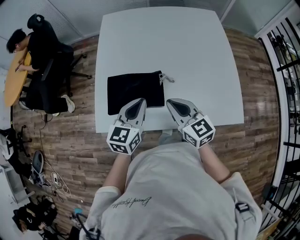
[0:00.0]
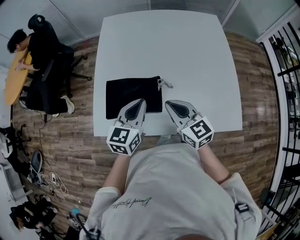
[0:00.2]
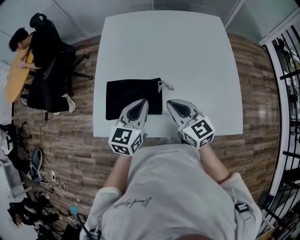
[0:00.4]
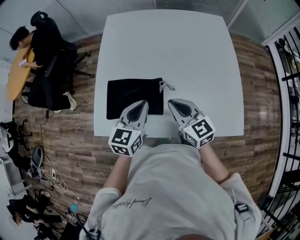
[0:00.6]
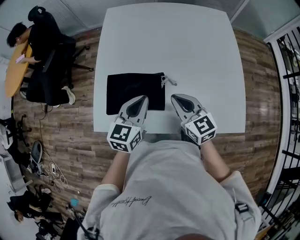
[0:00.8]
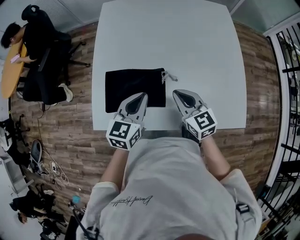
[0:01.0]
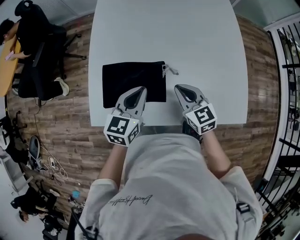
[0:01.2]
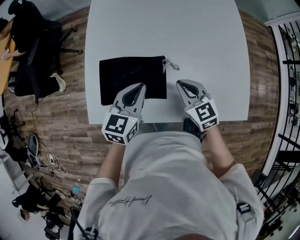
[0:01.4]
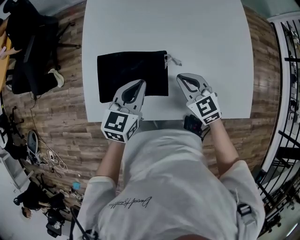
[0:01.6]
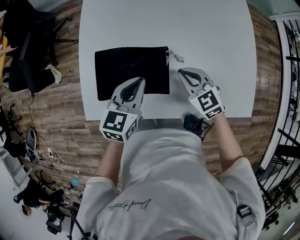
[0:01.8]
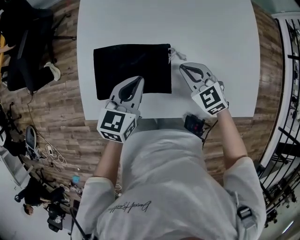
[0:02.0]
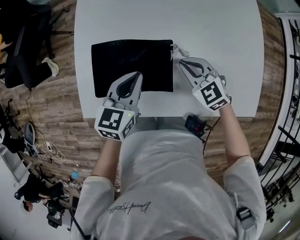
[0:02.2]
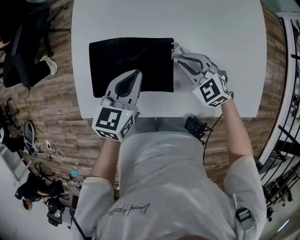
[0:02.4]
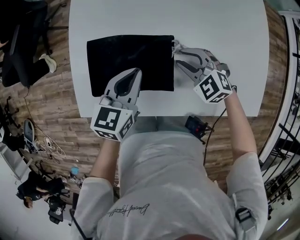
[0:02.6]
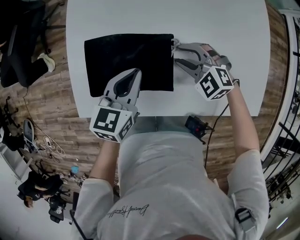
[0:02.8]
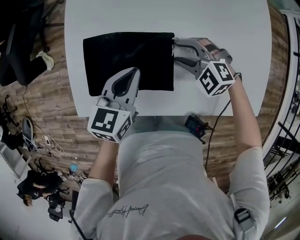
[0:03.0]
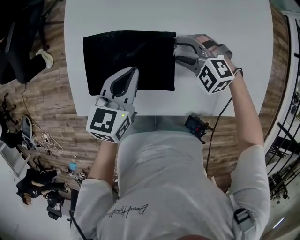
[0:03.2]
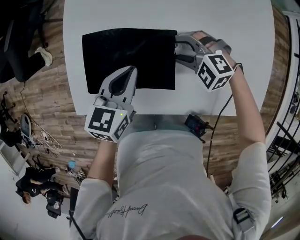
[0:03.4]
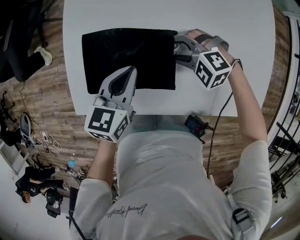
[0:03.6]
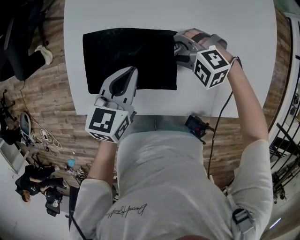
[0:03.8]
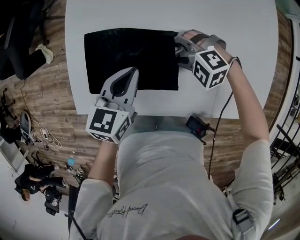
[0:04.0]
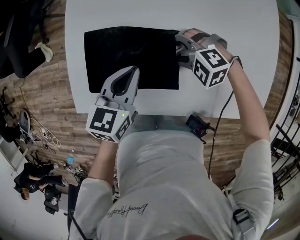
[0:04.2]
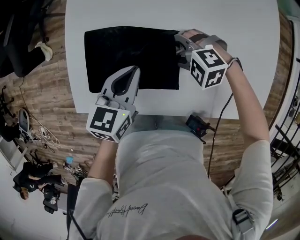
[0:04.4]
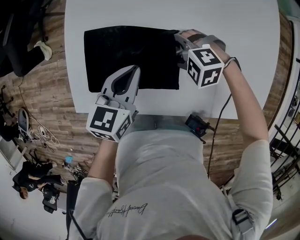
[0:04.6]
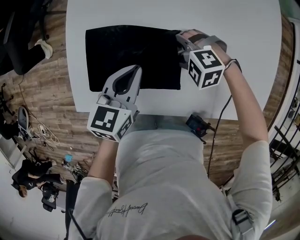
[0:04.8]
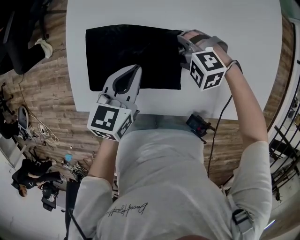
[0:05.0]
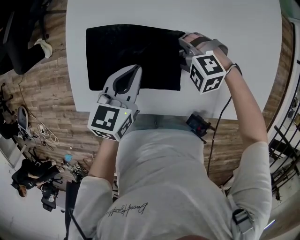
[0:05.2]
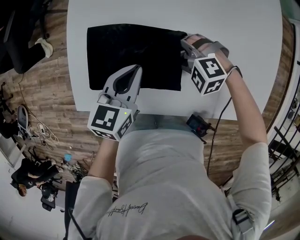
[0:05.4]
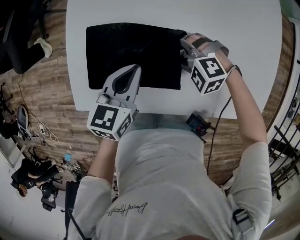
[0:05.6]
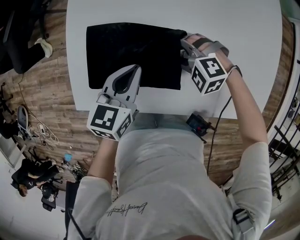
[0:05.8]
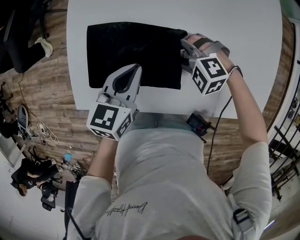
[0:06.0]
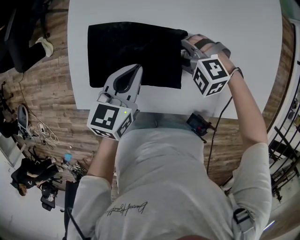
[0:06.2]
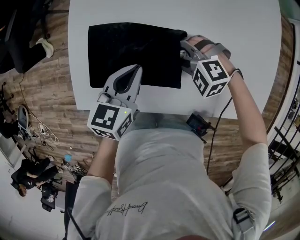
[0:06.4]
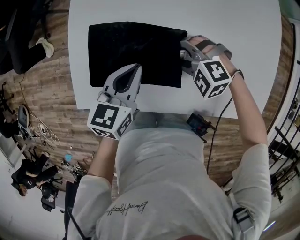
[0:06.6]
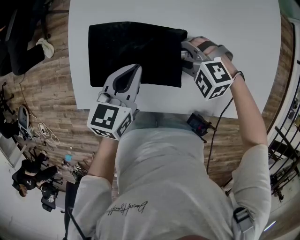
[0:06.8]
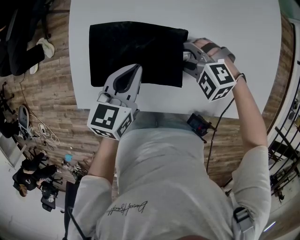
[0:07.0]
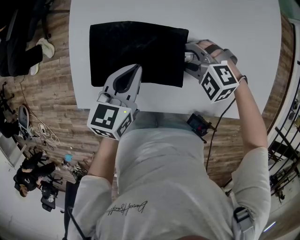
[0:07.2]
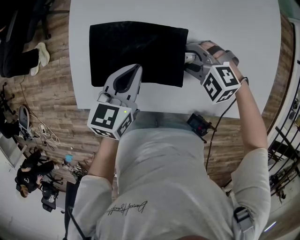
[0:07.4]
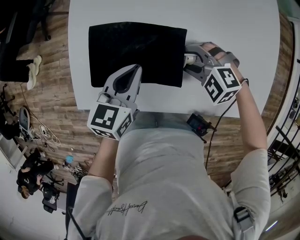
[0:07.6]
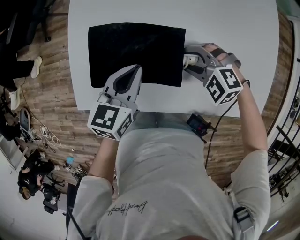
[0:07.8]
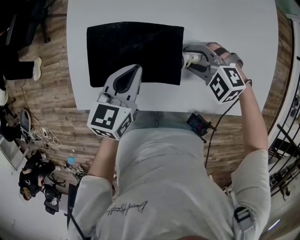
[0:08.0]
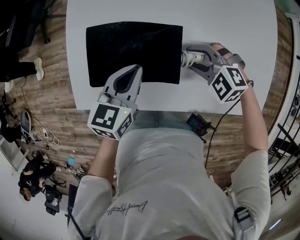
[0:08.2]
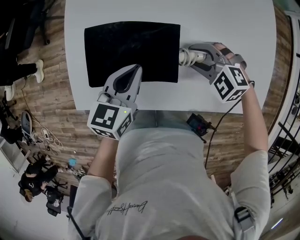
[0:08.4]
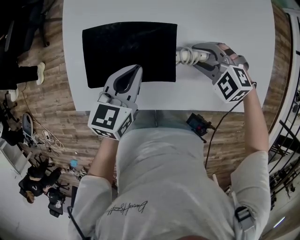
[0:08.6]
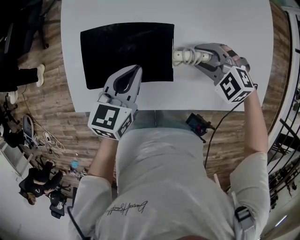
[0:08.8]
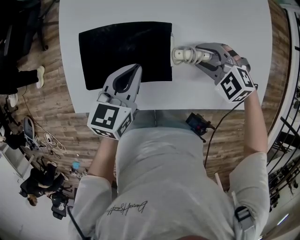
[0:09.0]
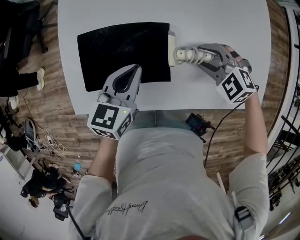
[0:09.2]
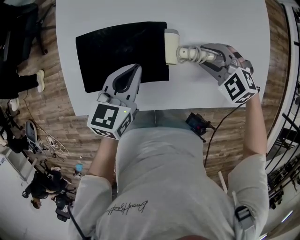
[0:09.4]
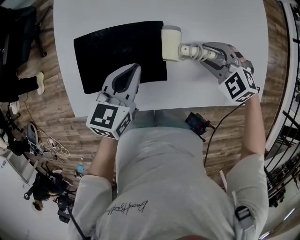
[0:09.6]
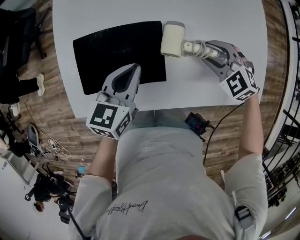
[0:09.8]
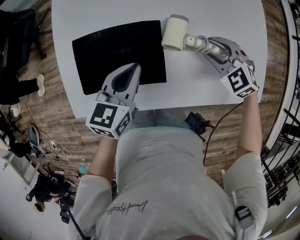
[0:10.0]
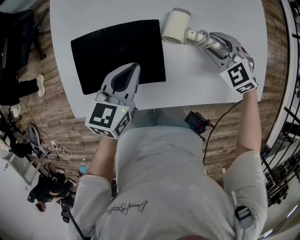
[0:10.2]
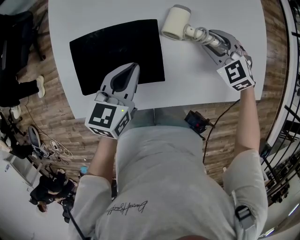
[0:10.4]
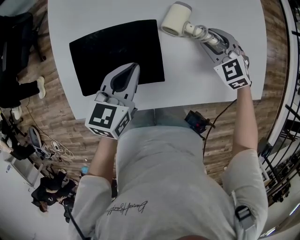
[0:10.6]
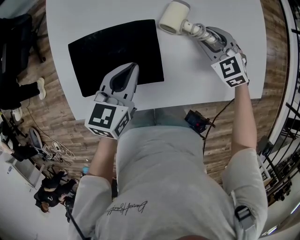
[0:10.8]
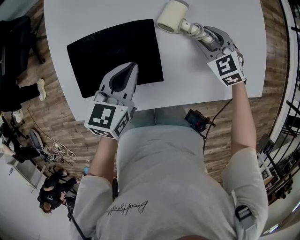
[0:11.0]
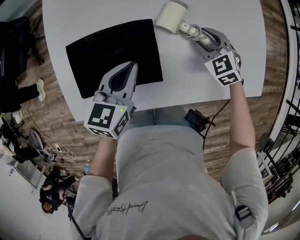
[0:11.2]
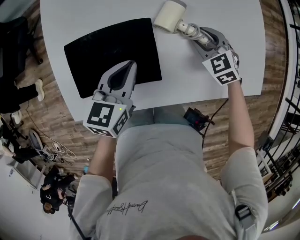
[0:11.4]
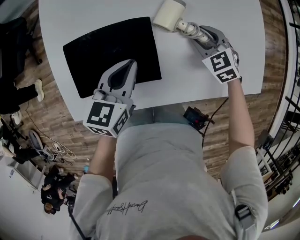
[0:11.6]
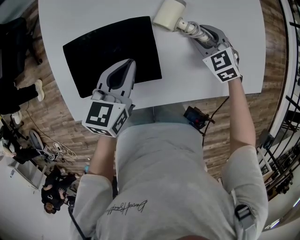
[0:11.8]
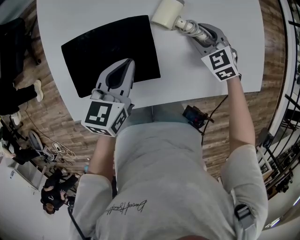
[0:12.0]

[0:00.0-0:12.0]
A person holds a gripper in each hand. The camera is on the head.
0:00.0 to 0:01.6: The right gripper is displaced downward and forward by some 10 cm, and changes its angle by some 20 degrees. Meanwhile the left gripper travels downward by about 5 cm.
0:01.6 to 0:03.0: The right gripper moves downward, roughly 10 cm, changes its angle by about 50 degrees, and opens, while the left gripper ends up about 5 cm from where it was.
0:03.0 to 0:04.4: The right gripper heads to the left, covering approximately 5 cm, and changes its angle by roughly 20 degrees.
0:04.4 to 0:07.6: The grippers stay close to where they were, moving slightly.
0:07.6 to 0:09.0: The right gripper goes roughly 10 cm to the right.
0:09.0 to 0:10.4: The right gripper moves to the right, roughly 10 cm, and swivels approximately 30 degrees.
0:10.4 to 0:12.0: The grippers move only a little.

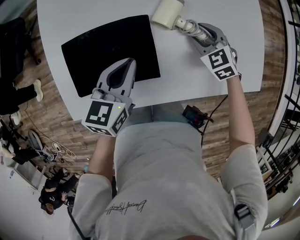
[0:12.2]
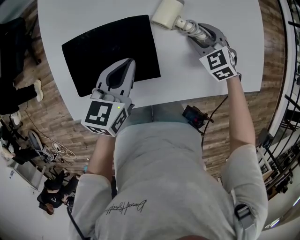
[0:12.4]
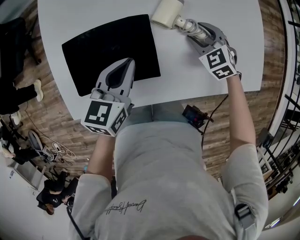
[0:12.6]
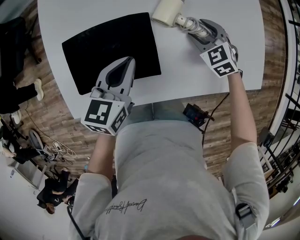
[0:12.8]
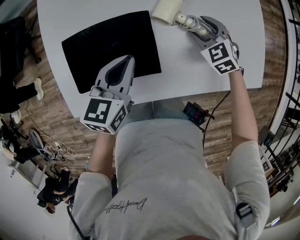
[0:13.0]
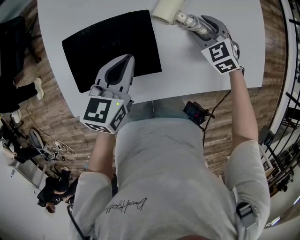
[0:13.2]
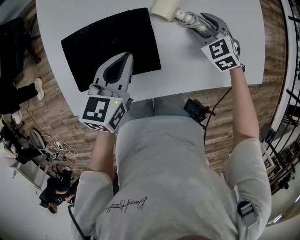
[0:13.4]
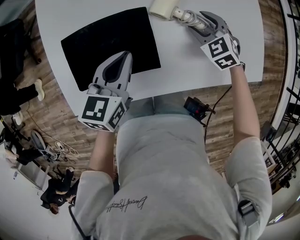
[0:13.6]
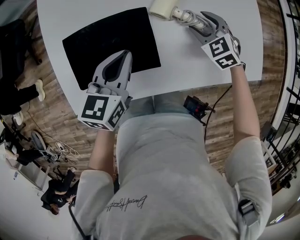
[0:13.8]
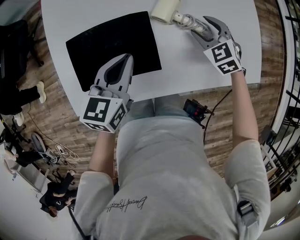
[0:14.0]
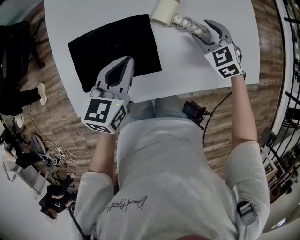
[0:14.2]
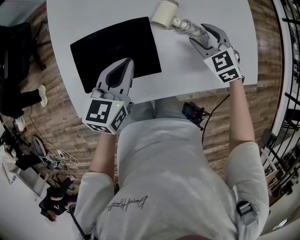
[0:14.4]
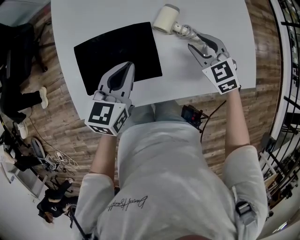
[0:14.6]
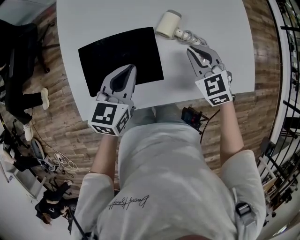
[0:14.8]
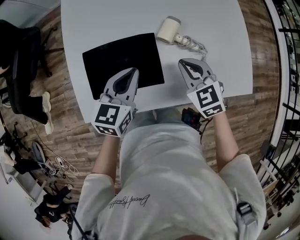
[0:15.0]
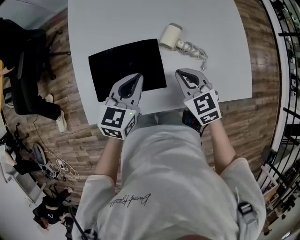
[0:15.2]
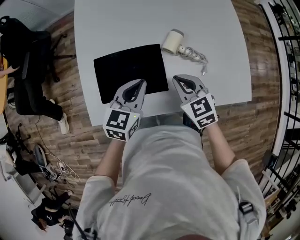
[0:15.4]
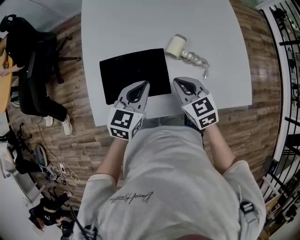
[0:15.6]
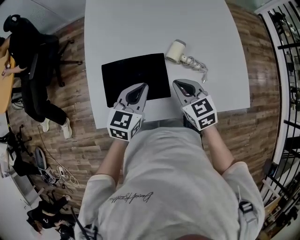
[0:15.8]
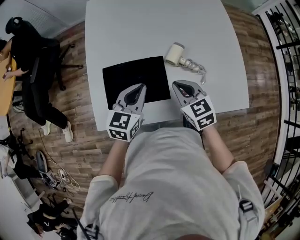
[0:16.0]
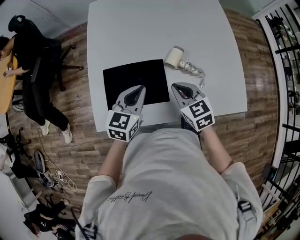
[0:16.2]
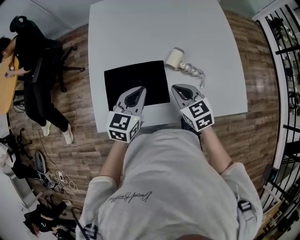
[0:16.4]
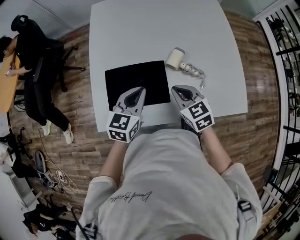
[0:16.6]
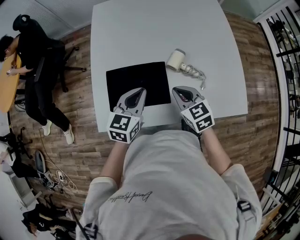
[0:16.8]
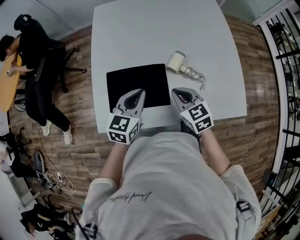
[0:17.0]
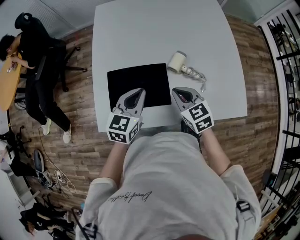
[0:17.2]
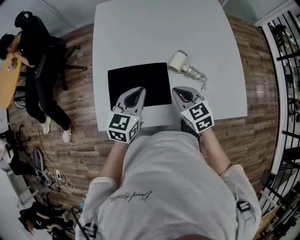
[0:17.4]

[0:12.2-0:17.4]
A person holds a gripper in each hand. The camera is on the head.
0:12.2 to 0:14.0: The grippers stay close to where they were, moving slightly.
0:14.0 to 0:15.6: The right gripper is displaced to the left, upward and backward by approximately 20 cm, turns by about 30 degrees, and closes its fingers.
0:15.6 to 0:17.4: The grippers make only small movements.

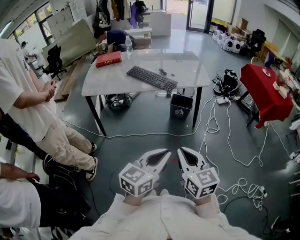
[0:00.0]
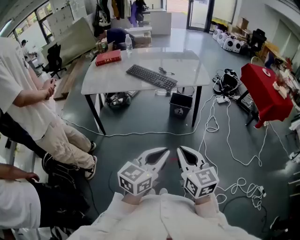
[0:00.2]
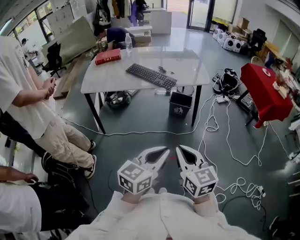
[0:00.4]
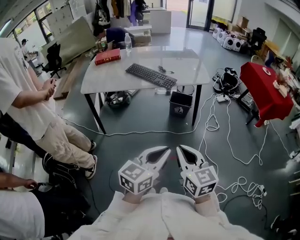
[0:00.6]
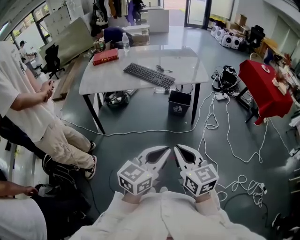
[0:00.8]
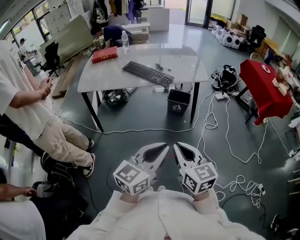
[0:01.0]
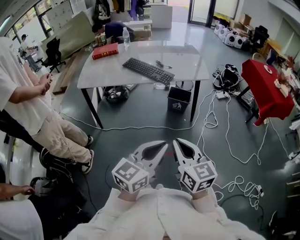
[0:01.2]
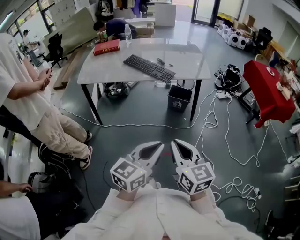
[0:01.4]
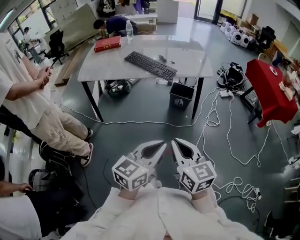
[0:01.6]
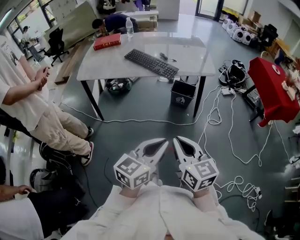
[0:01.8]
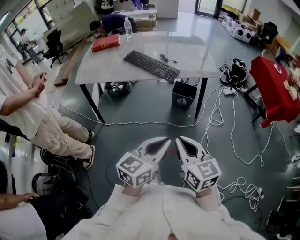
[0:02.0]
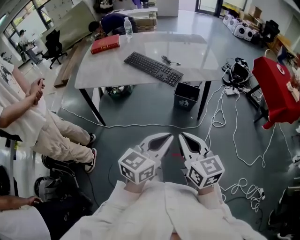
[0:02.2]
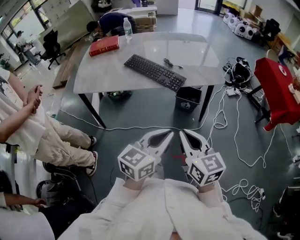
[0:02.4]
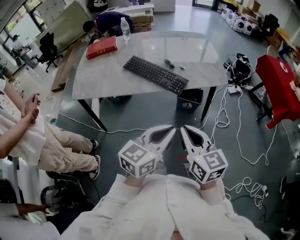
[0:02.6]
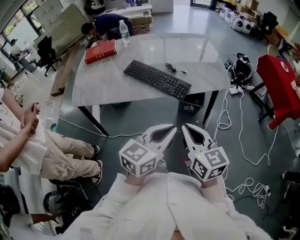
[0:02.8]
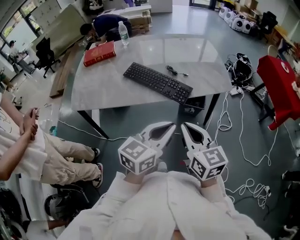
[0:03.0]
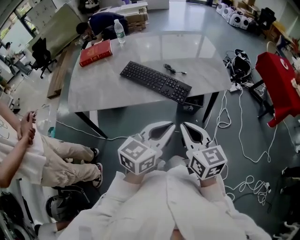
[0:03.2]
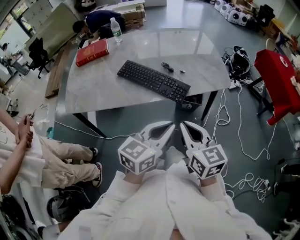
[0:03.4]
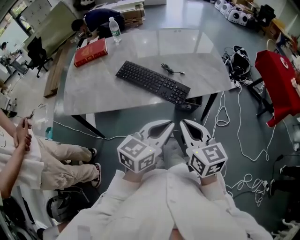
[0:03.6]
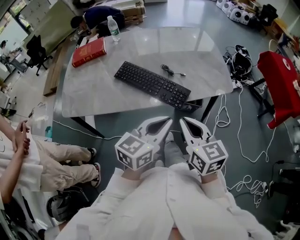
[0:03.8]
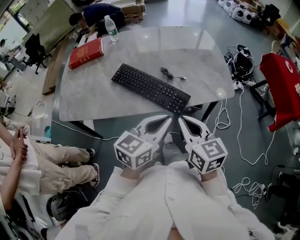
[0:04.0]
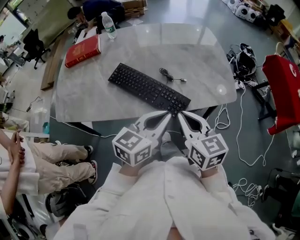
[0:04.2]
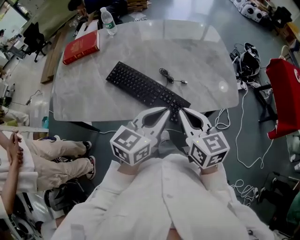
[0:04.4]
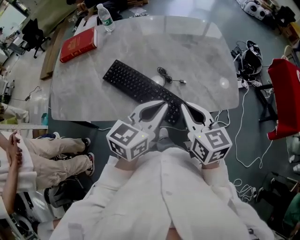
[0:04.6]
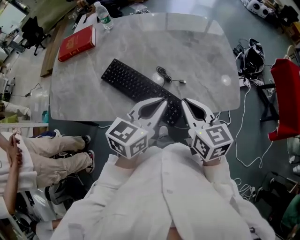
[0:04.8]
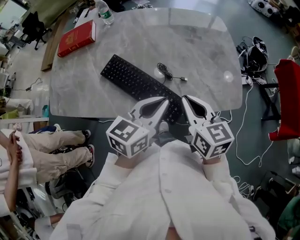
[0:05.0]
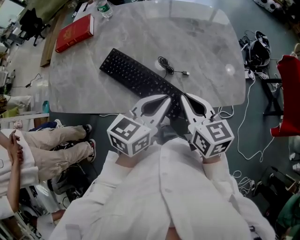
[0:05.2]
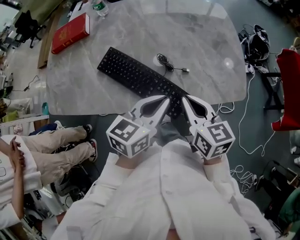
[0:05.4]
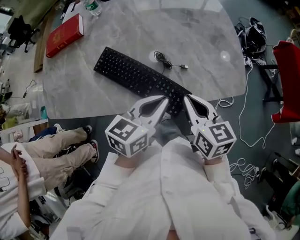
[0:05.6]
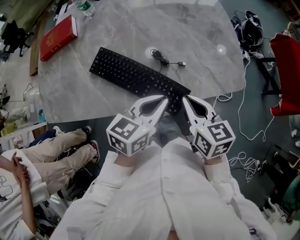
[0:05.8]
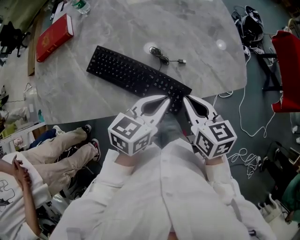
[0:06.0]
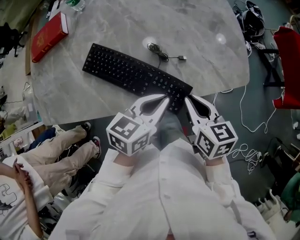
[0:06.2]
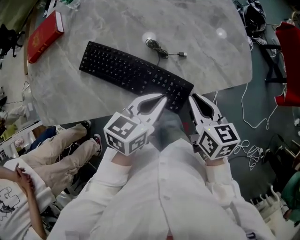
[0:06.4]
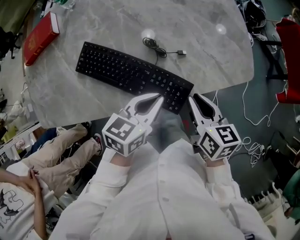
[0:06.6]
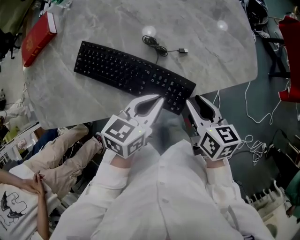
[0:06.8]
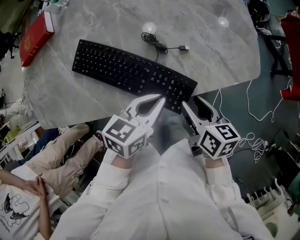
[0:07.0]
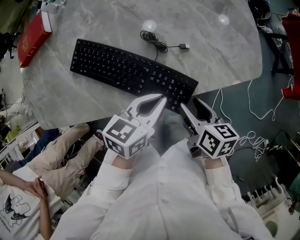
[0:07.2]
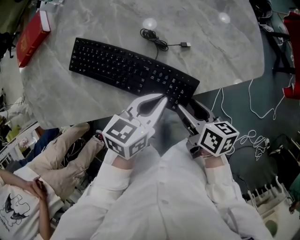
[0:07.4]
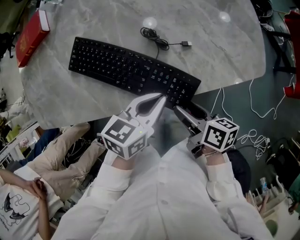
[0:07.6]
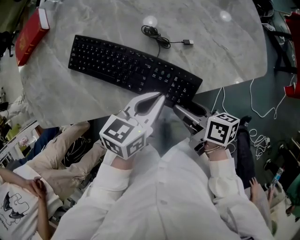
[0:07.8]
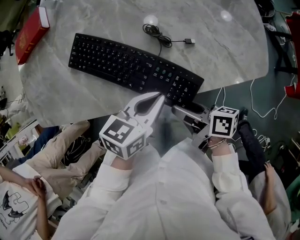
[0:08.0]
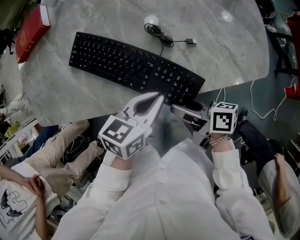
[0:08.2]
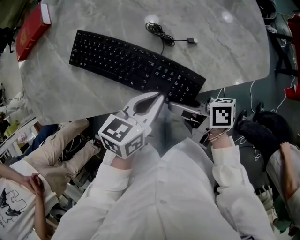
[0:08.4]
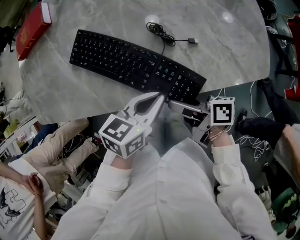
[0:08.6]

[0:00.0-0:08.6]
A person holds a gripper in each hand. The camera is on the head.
0:00.0 to 0:01.4: The grippers stay close to where they were, moving slightly.
0:01.4 to 0:02.8: Both grippers travel together forward, approximately 30 cm.
0:02.8 to 0:04.4: Both grippers travel together forward, roughly 25 cm.
0:04.4 to 0:05.8: The grippers both shift downward by about 5 cm.
0:05.8 to 0:07.2: Both grippers travel together downward, about 10 cm. The right gripper rotates approximately 30 degrees, and opens.
0:07.2 to 0:08.6: The right gripper moves to the left, some 10 cm, and rotates roughly 40 degrees.
